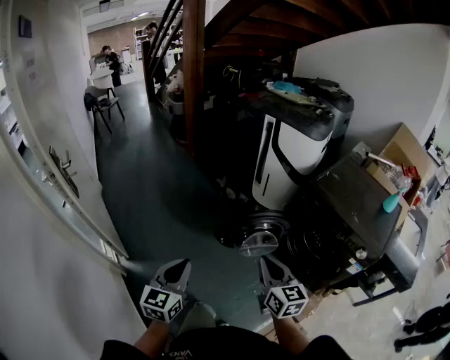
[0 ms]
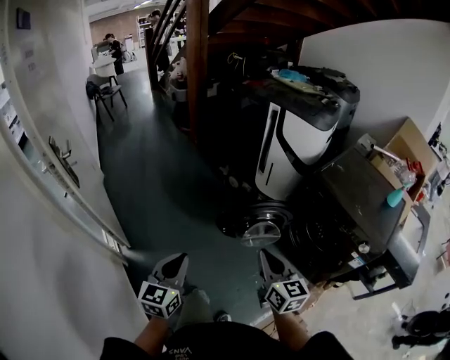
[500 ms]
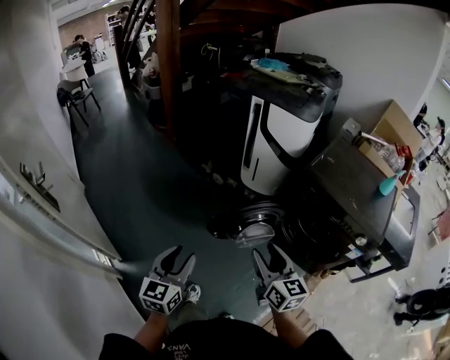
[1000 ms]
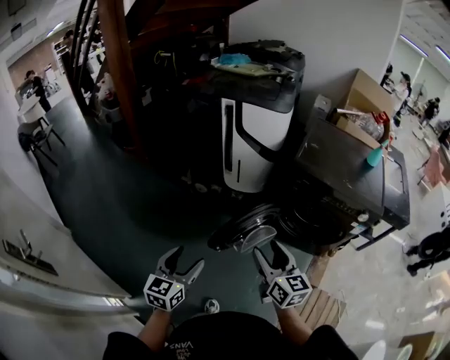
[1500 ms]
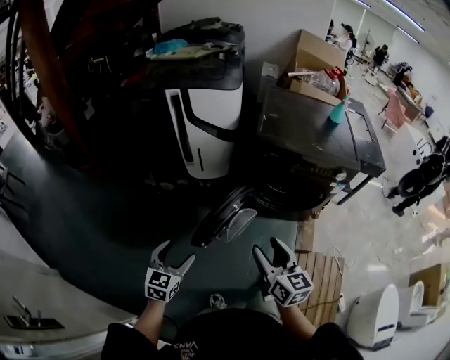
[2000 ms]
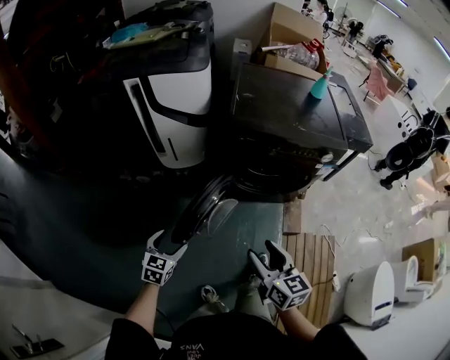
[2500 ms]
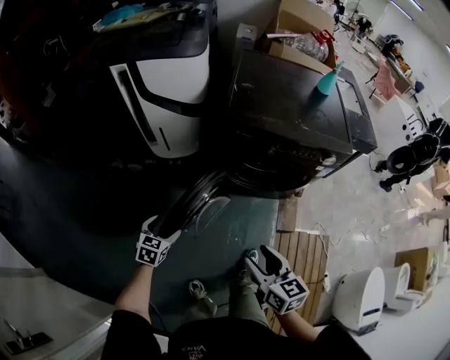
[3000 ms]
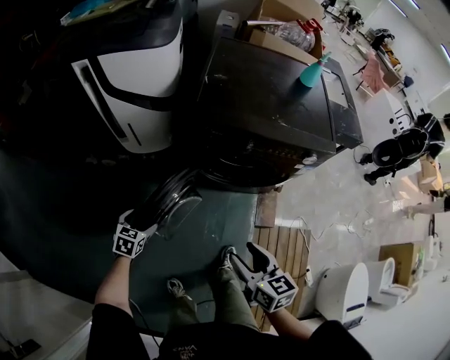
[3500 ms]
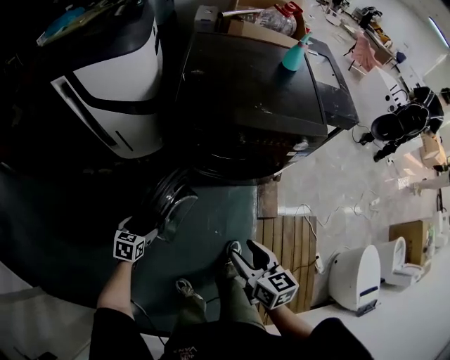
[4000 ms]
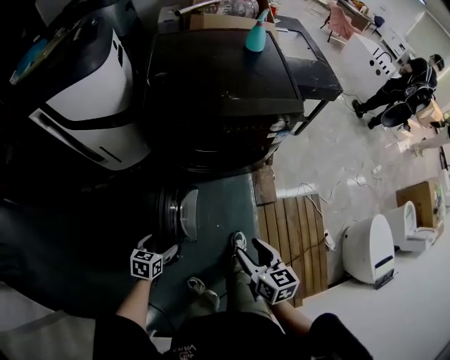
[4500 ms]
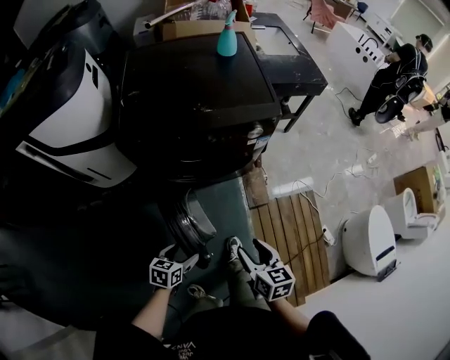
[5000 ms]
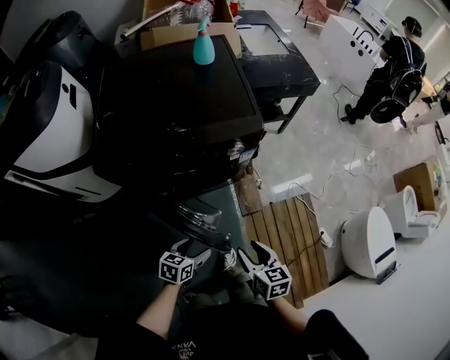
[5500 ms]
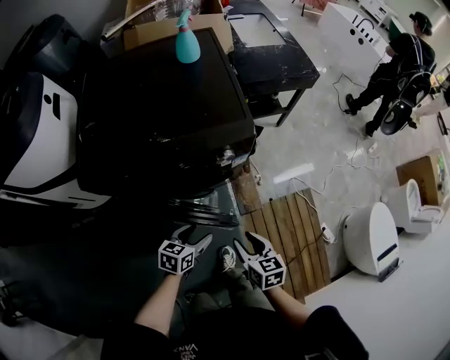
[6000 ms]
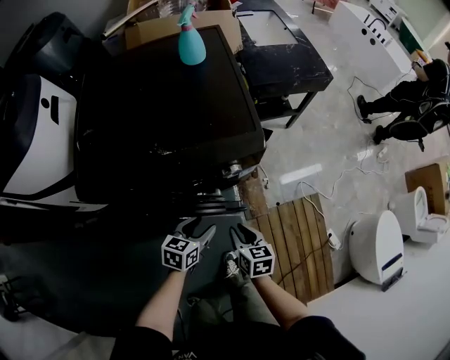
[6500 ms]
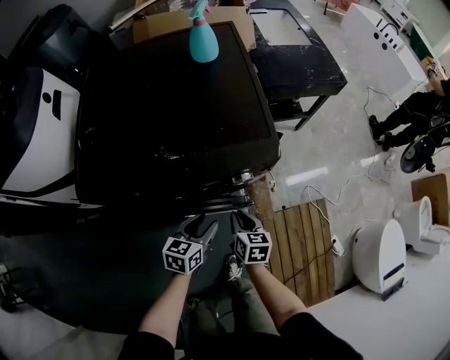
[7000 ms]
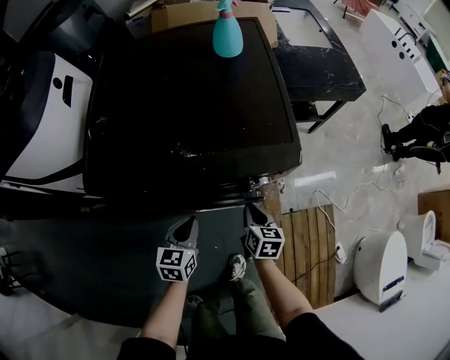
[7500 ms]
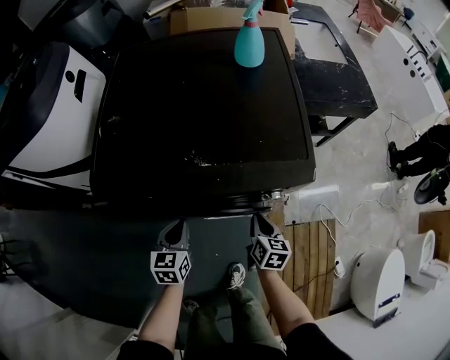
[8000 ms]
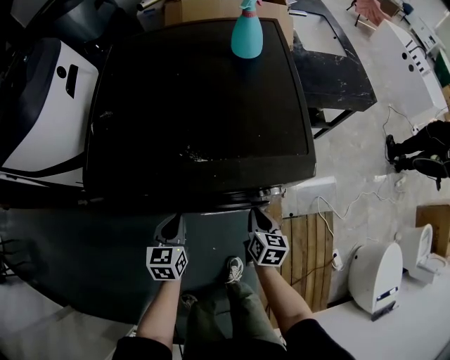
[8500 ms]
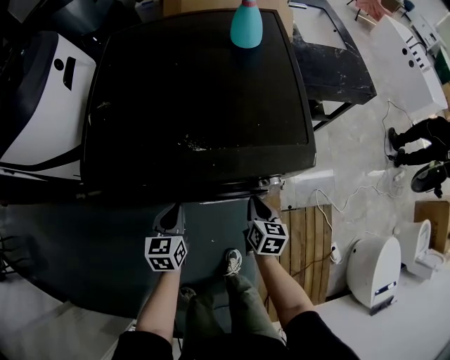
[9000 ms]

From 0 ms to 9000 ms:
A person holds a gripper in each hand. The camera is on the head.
From 0 ms to 2000 ms: The right gripper changes place by approximately 15 cm, rotates approximately 40 degrees, and opens. The left gripper moves about 30 cm, turns by roughly 50 degrees, and opens up.
From 2000 ms to 4500 ms: The right gripper is displaced to the right and downward by about 30 cm, and swivels roughly 20 degrees, while the left gripper shifts roughly 35 cm to the right, downward and forward, and turns by about 40 degrees.
From 4500 ms to 7000 ms: The right gripper moves forward and downward, some 40 cm, and closes; the left gripper heads forward and to the right, covering approximately 40 cm, and closes its fingers.
From 7000 ms to 9000 ms: The left gripper goes some 15 cm to the left, rotates some 30 degrees, and closes up, while the right gripper moves forward, roughly 5 cm.

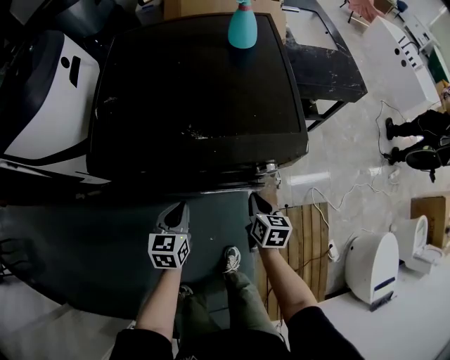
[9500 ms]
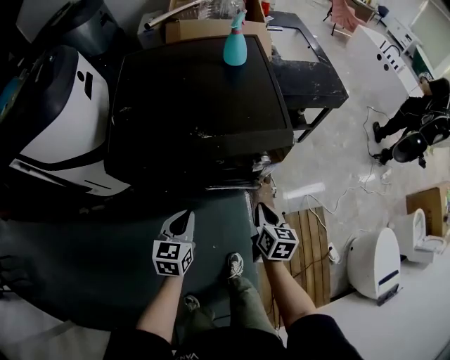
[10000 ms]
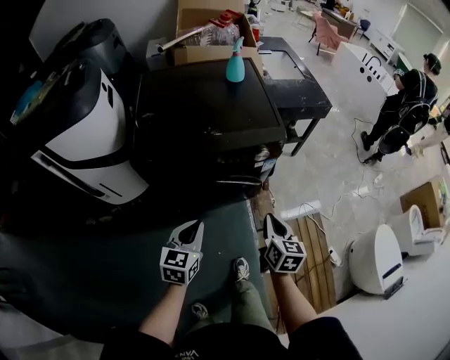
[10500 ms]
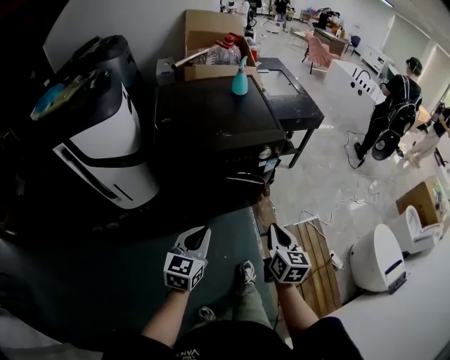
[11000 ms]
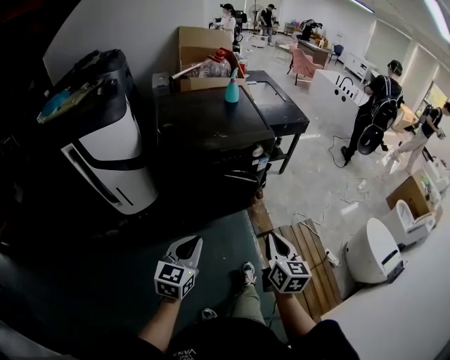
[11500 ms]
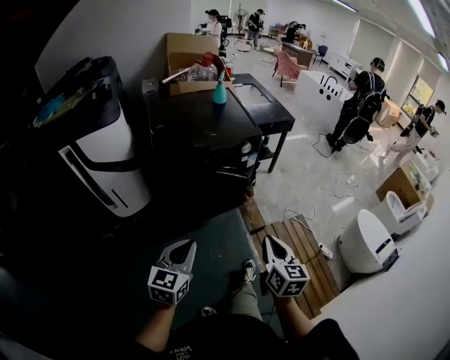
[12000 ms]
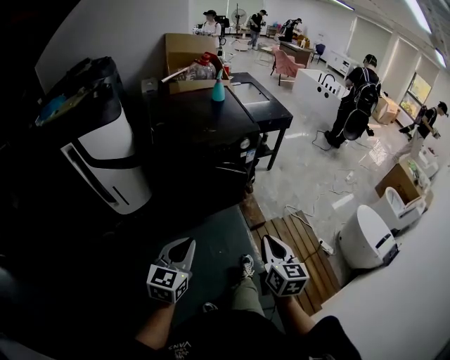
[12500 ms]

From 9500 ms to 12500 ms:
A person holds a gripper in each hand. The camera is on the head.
From 9500 ms to 11000 ms: The two grippers go about 35 cm backward and upward. The left gripper turns by approximately 30 degrees, while the right gripper changes its angle by approximately 20 degrees.
From 11000 ms to 12500 ms: Both grippers move backward, roughly 20 cm.

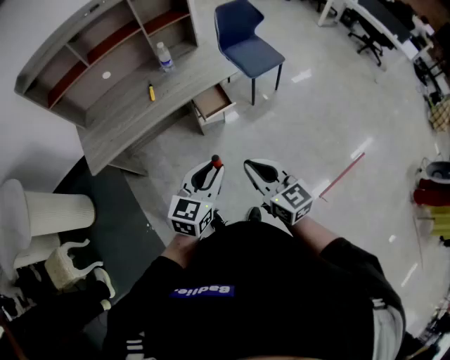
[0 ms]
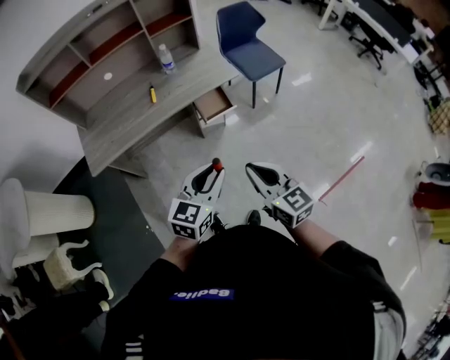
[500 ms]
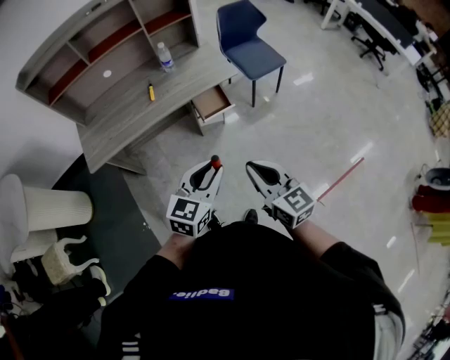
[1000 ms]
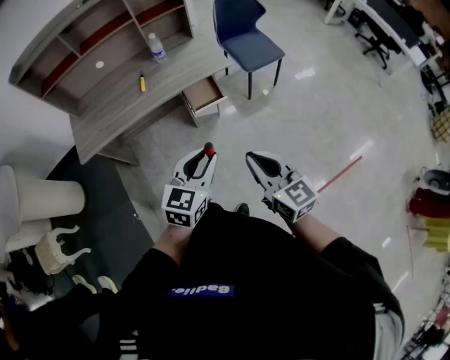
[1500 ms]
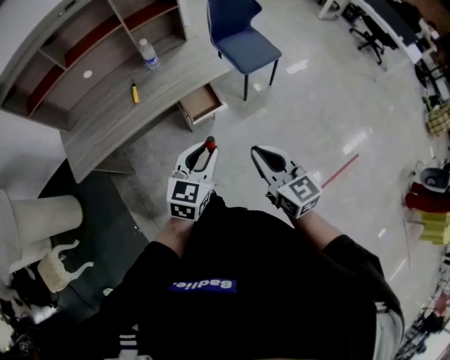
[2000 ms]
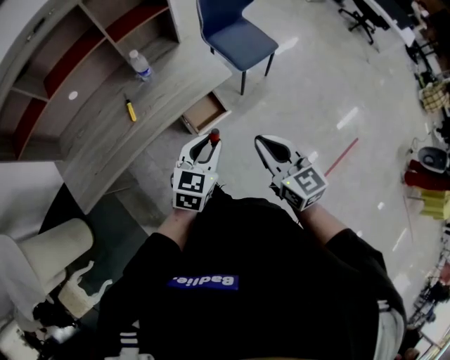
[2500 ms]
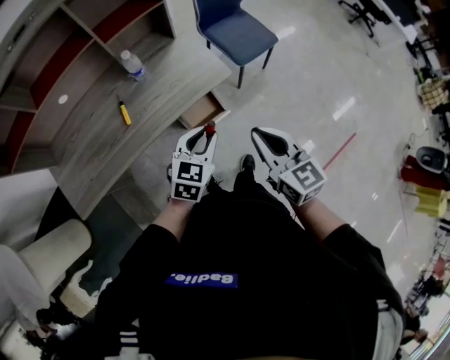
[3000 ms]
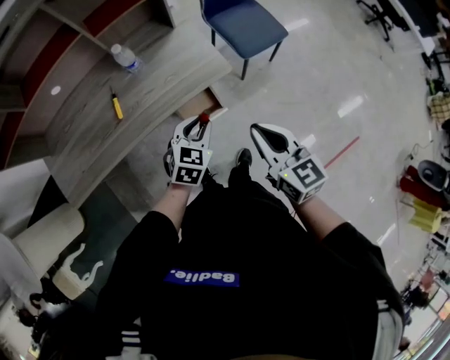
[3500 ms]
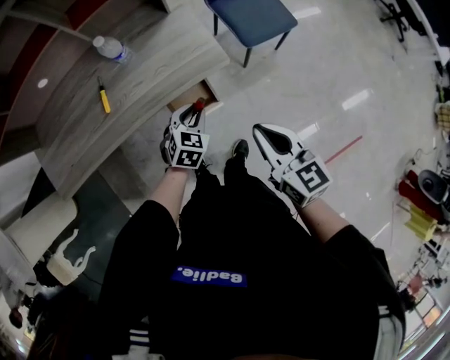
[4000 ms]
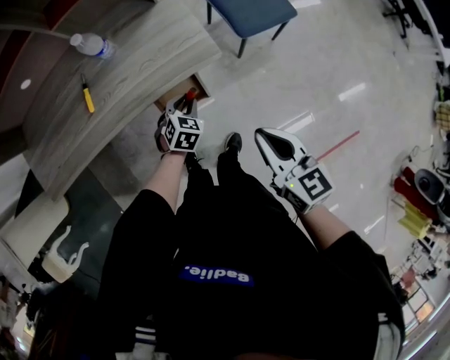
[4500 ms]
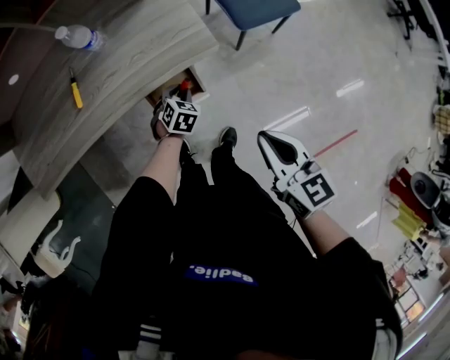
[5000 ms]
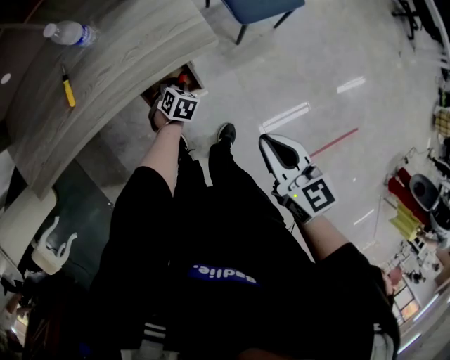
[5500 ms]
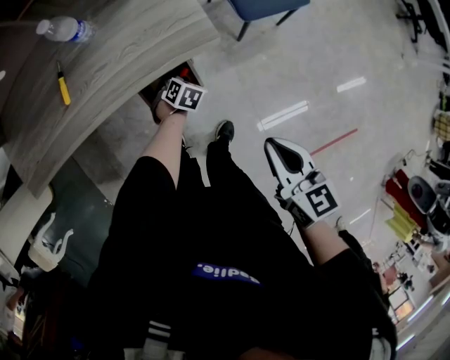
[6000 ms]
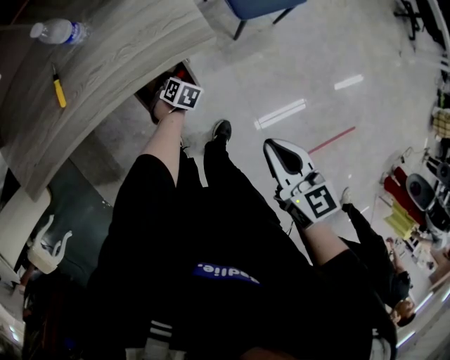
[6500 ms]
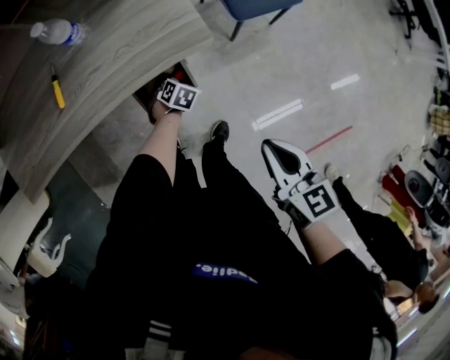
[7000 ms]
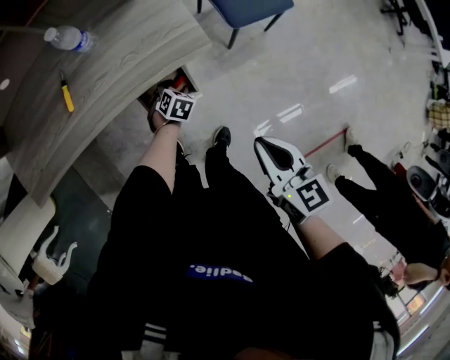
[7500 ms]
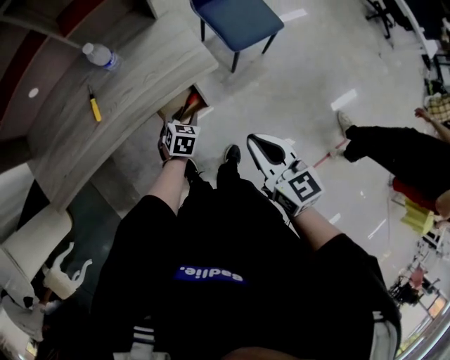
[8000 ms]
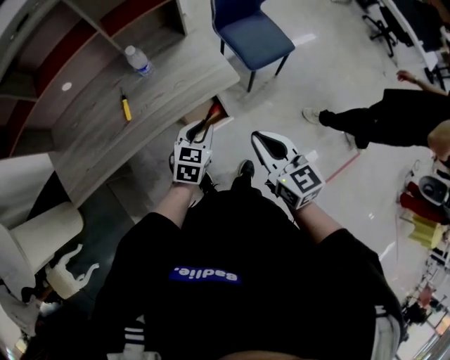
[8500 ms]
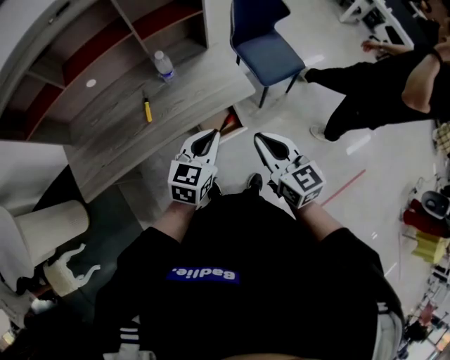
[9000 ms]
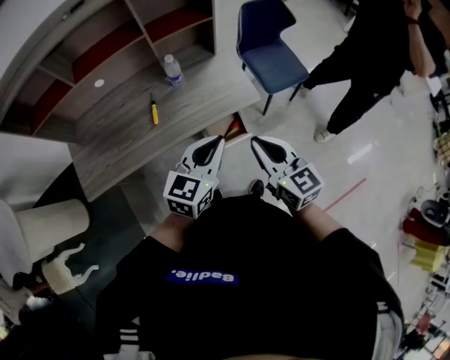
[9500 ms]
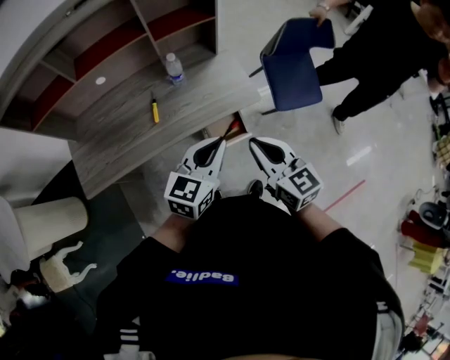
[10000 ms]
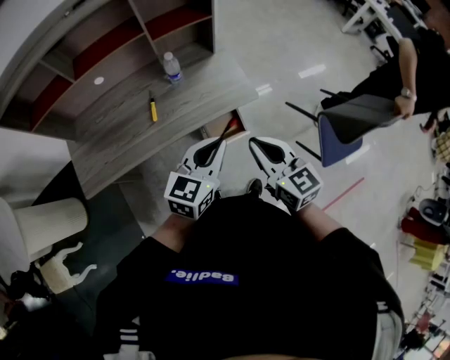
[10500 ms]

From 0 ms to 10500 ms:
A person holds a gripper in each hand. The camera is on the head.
From 0 ms to 2000 ms: The left gripper goes some 10 cm forward. Meanwhile the right gripper moves forward and to the right, some 10 cm.
From 2000 ms to 4000 ms: The left gripper travels forward and downward by about 35 cm, and swivels about 30 degrees. The right gripper heads forward, covering some 25 cm.
From 4000 ms to 6500 ms: The right gripper goes approximately 10 cm downward; the left gripper travels downward by roughly 25 cm, and changes its angle by about 30 degrees.
From 6500 ms to 8500 ms: The left gripper travels upward by roughly 35 cm, tilts its fingers approximately 40 degrees upward, and opens, then closes once more. Meanwhile the right gripper is displaced upward by approximately 15 cm.
From 8500 ms to 10500 ms: The right gripper travels to the left by approximately 10 cm. The left gripper shifts about 20 cm upward, and turns by approximately 20 degrees.

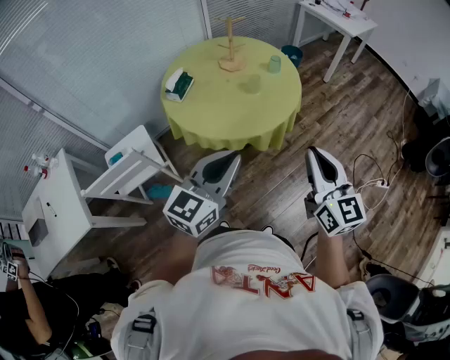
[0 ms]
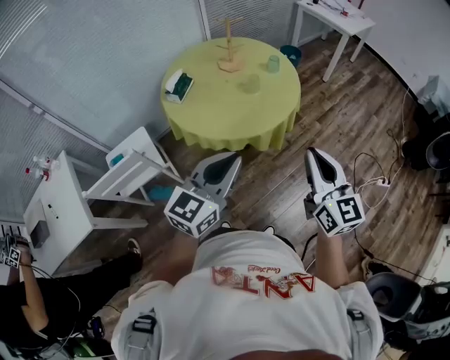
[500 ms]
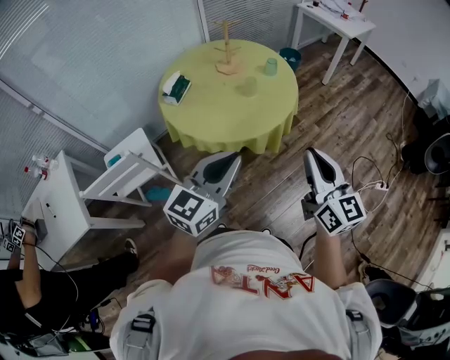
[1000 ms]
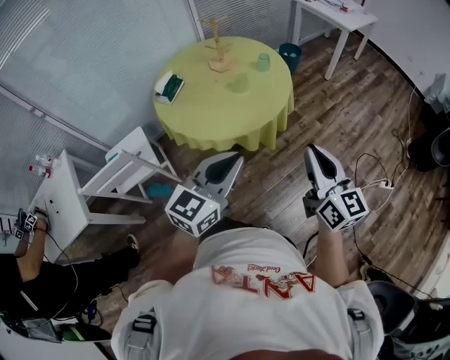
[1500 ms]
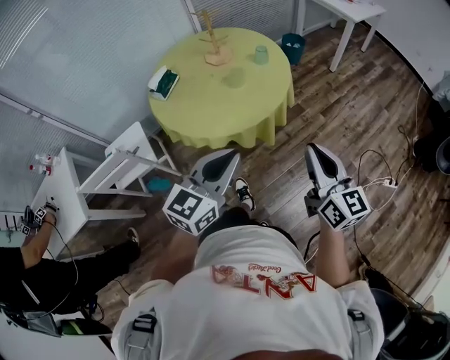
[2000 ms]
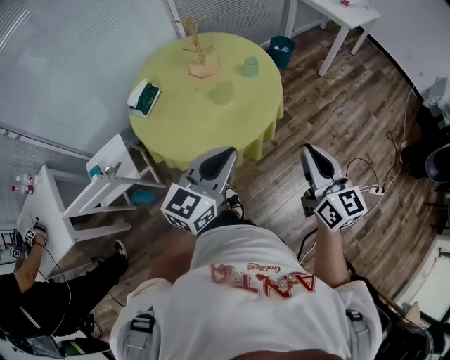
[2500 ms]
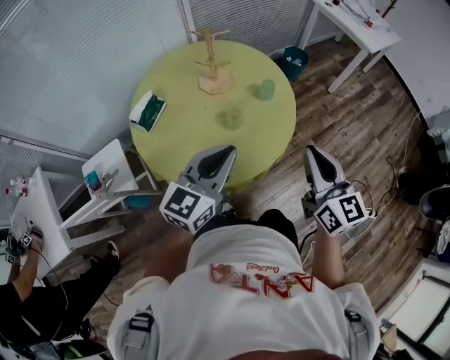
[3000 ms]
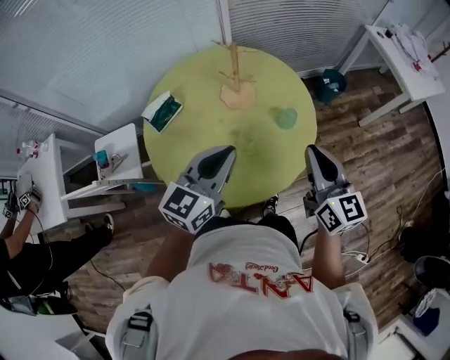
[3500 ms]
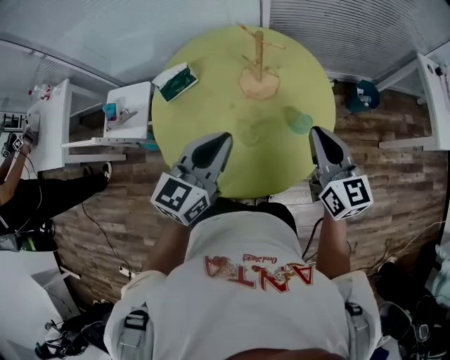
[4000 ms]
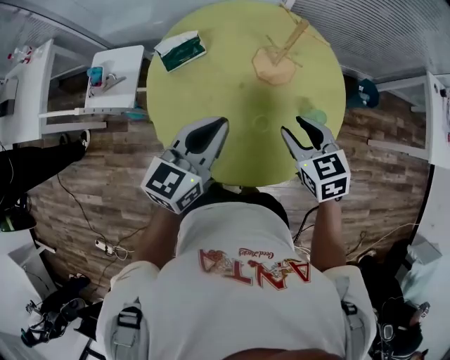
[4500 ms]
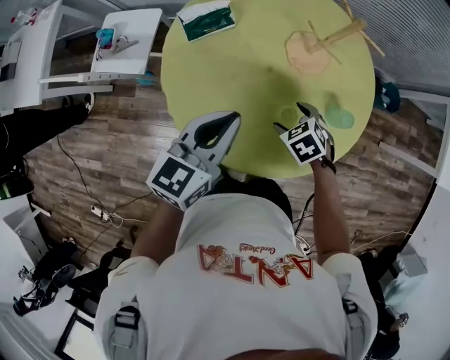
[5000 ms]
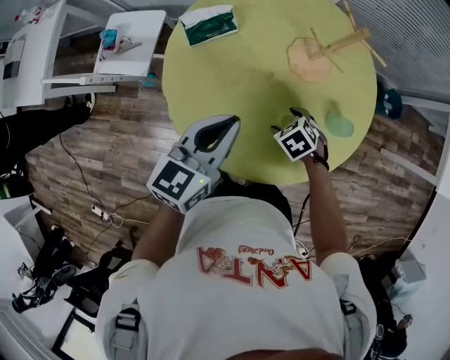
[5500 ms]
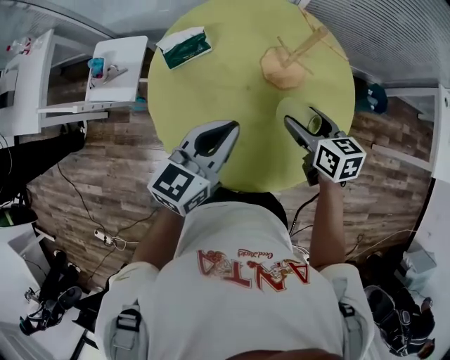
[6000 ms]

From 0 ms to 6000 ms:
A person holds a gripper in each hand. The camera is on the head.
From 0 ms to 2000 ms: The left gripper goes some 15 cm to the right; the right gripper is displaced to the right and forward by roughly 15 cm.
From 2000 ms to 4000 ms: Both grippers are carried roughly 50 cm. The left gripper changes its angle by approximately 40 degrees; the right gripper swivels approximately 30 degrees.
From 4000 ms to 6000 ms: The left gripper shifts approximately 10 cm downward and to the left. The right gripper heads downward, forward and to the left, covering roughly 20 cm, turns by about 30 degrees, and opens.
